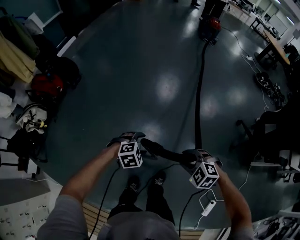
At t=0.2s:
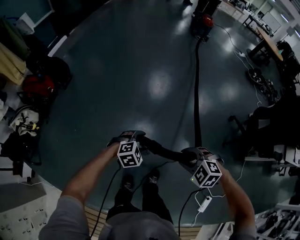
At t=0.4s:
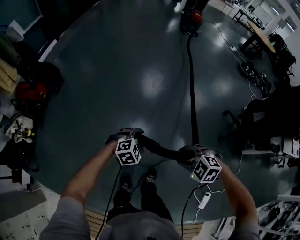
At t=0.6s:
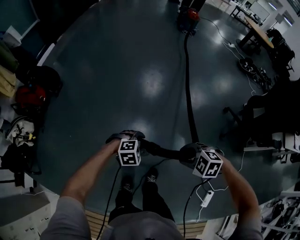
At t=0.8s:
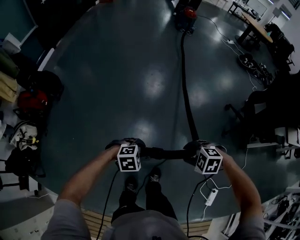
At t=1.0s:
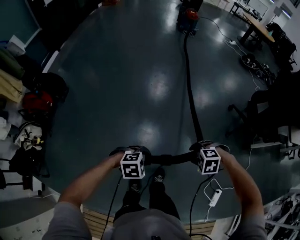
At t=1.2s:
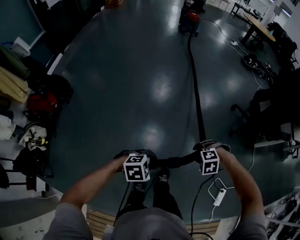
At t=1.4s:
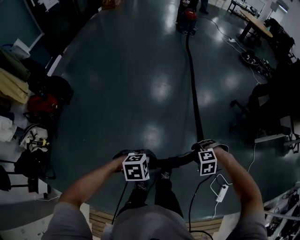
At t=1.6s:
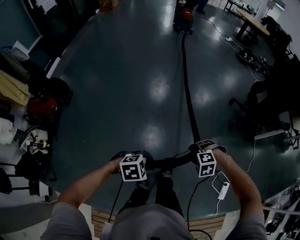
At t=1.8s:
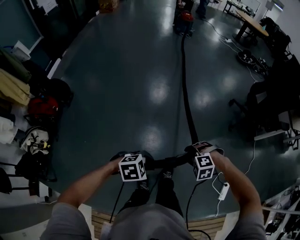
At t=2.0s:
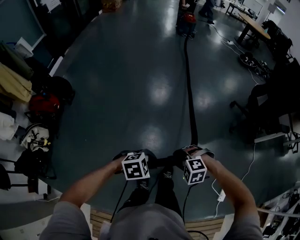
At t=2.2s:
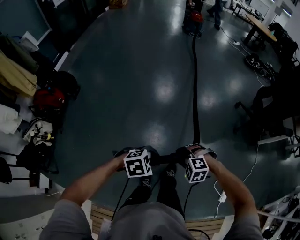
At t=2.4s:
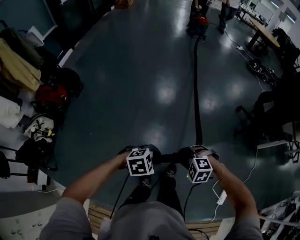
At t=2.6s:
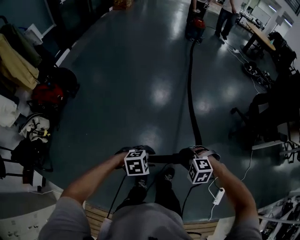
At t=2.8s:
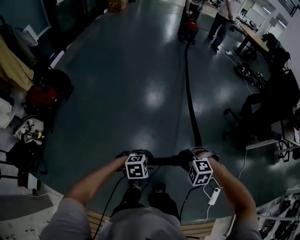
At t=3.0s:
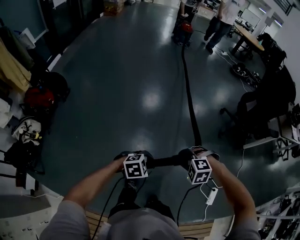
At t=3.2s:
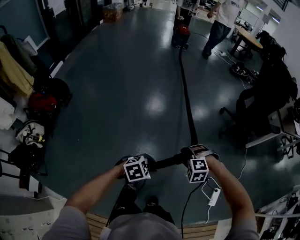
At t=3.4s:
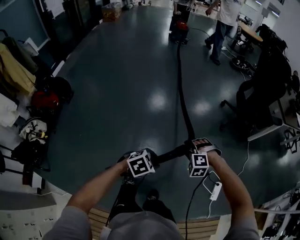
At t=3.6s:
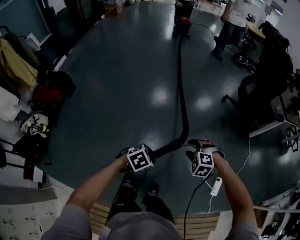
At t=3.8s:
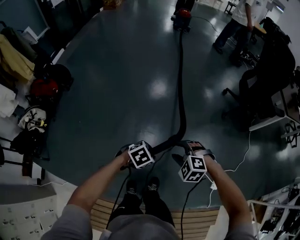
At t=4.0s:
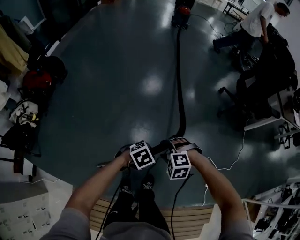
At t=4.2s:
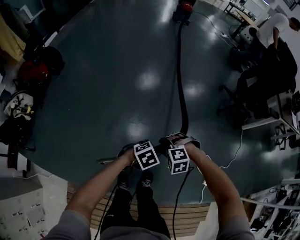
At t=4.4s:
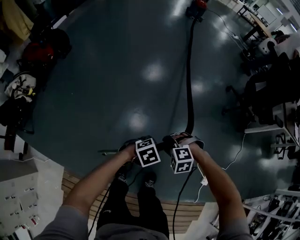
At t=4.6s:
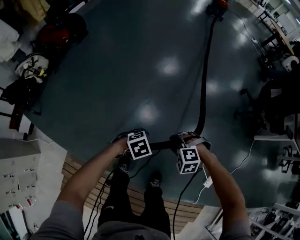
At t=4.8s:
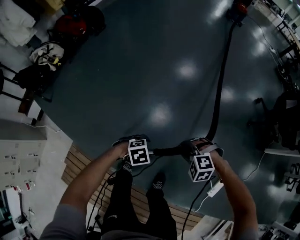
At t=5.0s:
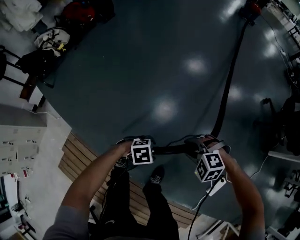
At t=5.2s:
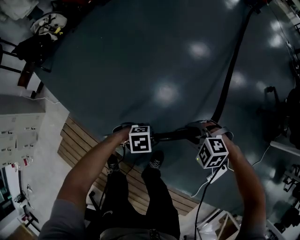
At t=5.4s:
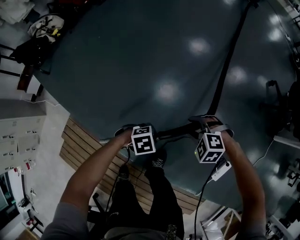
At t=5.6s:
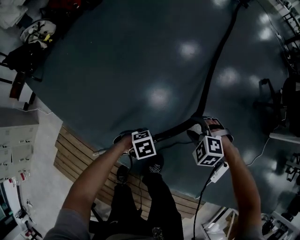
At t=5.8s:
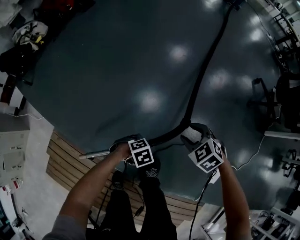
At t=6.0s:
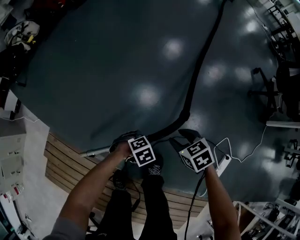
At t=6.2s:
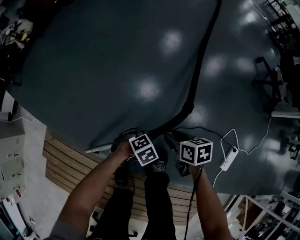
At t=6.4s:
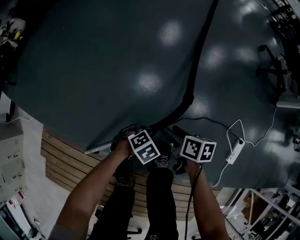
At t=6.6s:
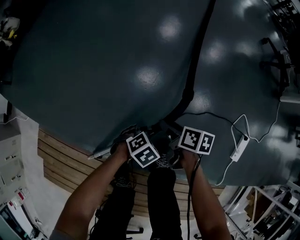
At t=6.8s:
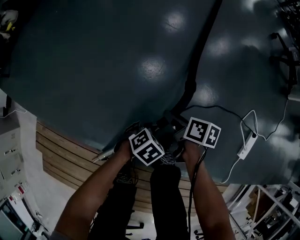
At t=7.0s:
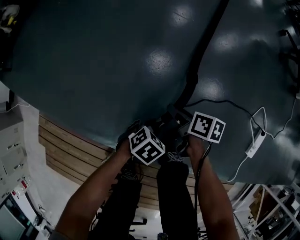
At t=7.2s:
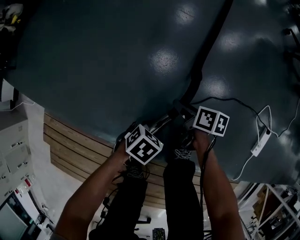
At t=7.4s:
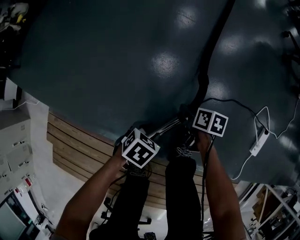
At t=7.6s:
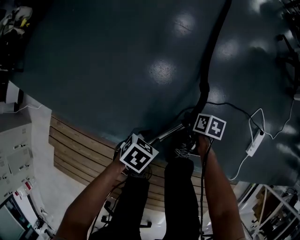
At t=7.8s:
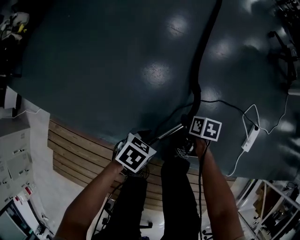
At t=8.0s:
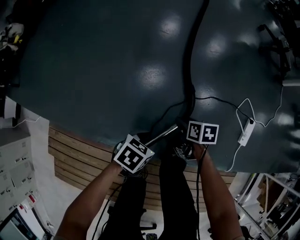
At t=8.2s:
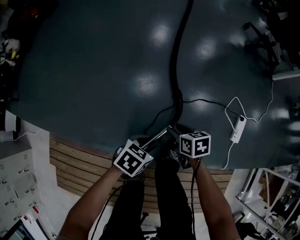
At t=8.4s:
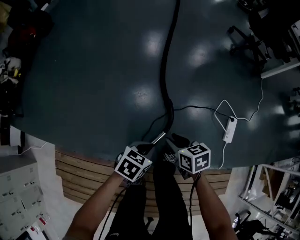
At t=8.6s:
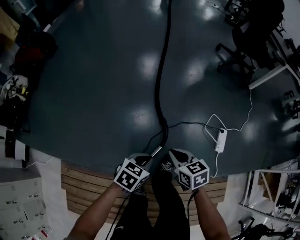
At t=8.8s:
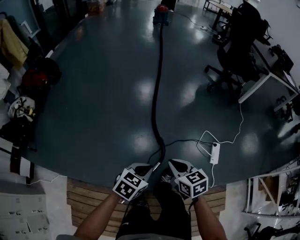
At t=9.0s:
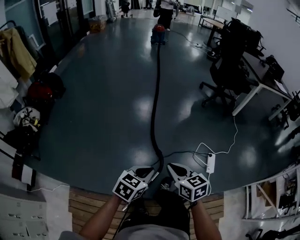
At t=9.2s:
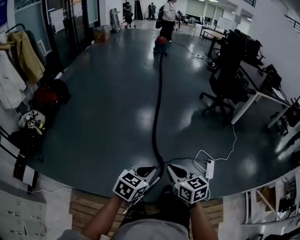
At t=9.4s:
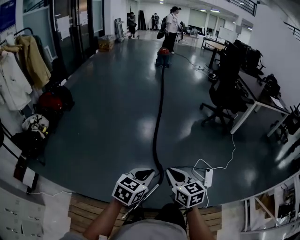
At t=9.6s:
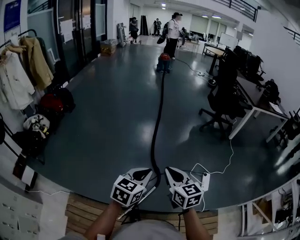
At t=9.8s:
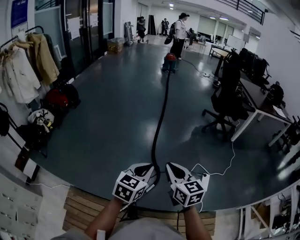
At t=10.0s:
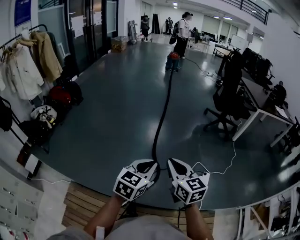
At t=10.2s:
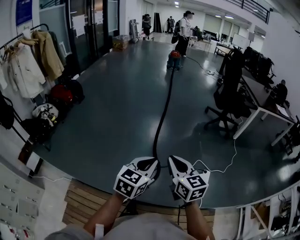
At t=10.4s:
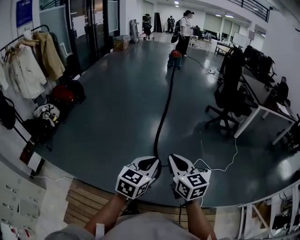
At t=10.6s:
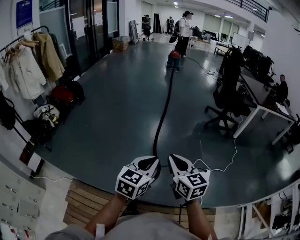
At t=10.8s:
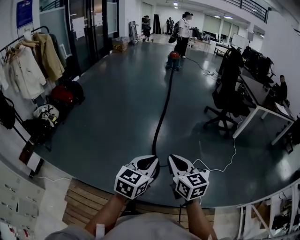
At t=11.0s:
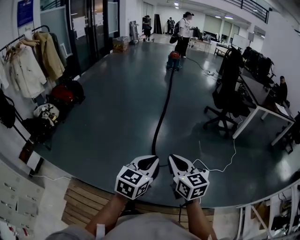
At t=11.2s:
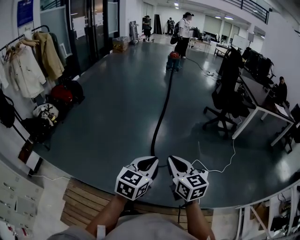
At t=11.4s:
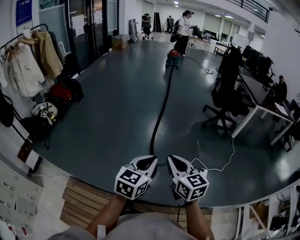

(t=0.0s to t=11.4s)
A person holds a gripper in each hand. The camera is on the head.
t=0.0s - t=1.4s: The right gripper changes place by approximately 15 cm, and rotates about 20 degrees, while the left gripper moves approximately 20 cm, turns by roughly 20 degrees, and closes.
t=1.4s - t=2.8s: The left gripper moves approximately 5 cm, while the right gripper ends up approximately 15 cm from where it was.
t=2.8s - t=4.2s: The right gripper changes place by some 20 cm. The left gripper ends up about 20 cm from where it was, and turns by about 20 degrees.
t=4.2s - t=5.6s: The left gripper goes some 25 cm downward, and opens and closes again. The right gripper moves downward, approximately 20 cm.
t=5.6s - t=7.2s: Both grippers travel together downward, approximately 35 cm. The left gripper turns by about 20 degrees, while the right gripper rotates around the line of its fingers by roughly 120 degrees, clockwise from behind.
t=7.2s - t=8.6s: The grippers both shift upward by approximately 40 cm. The left gripper turns by about 20 degrees, and closes; the right gripper rotates about 40 degrees, and closes.
t=8.6s - t=10.0s: Both grippers move upward, about 40 cm. The right gripper tips its fingers upward by some 30 degrees. Meanwhile the left gripper changes its angle by roughly 30 degrees.
t=10.0s - t=11.4s: The left gripper shifts by some 5 cm; the right gripper ends up some 5 cm from where it was.

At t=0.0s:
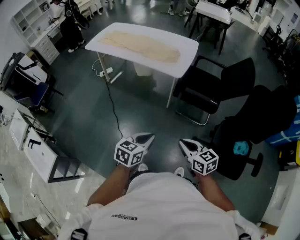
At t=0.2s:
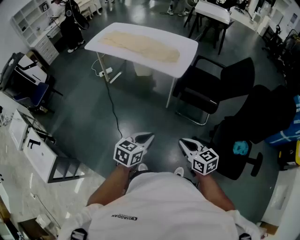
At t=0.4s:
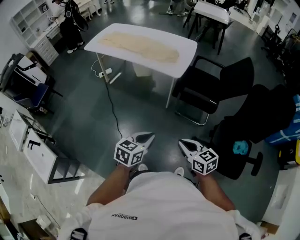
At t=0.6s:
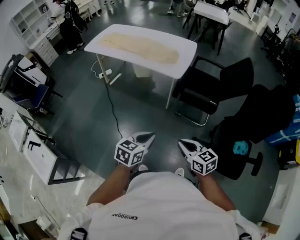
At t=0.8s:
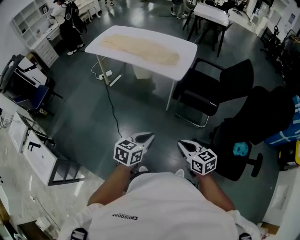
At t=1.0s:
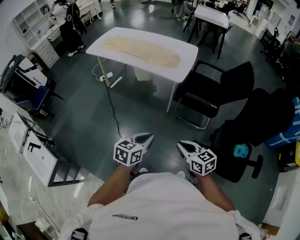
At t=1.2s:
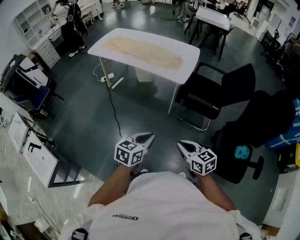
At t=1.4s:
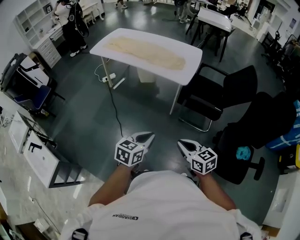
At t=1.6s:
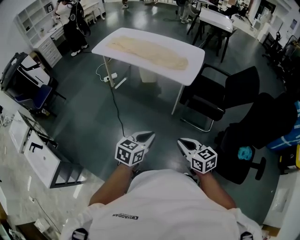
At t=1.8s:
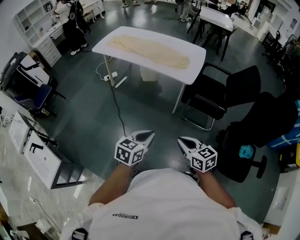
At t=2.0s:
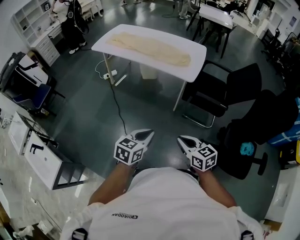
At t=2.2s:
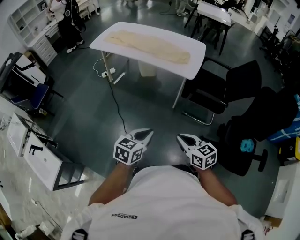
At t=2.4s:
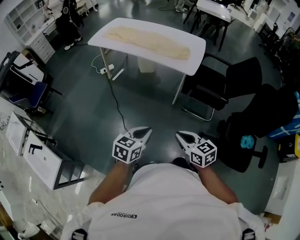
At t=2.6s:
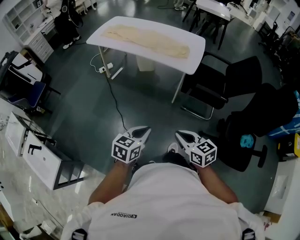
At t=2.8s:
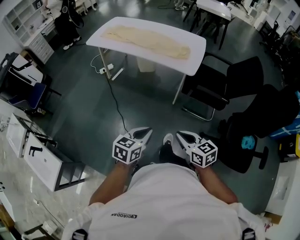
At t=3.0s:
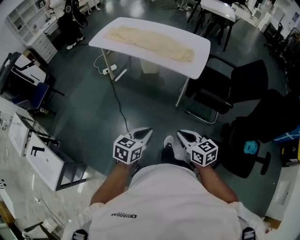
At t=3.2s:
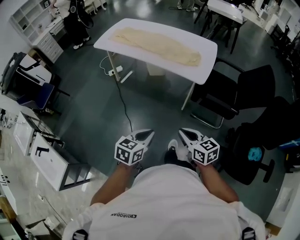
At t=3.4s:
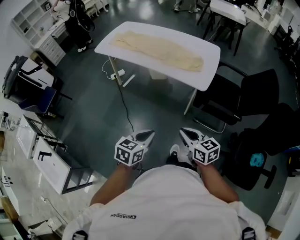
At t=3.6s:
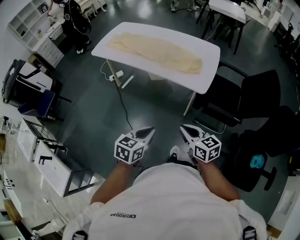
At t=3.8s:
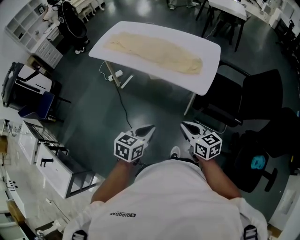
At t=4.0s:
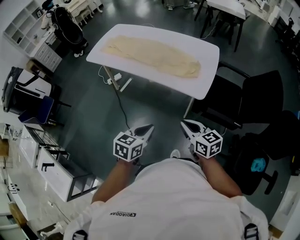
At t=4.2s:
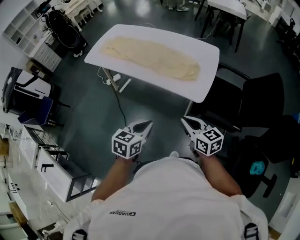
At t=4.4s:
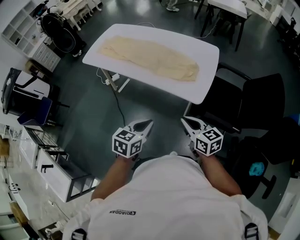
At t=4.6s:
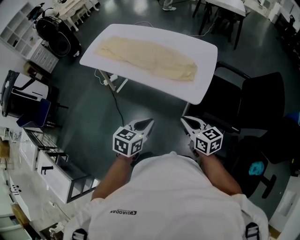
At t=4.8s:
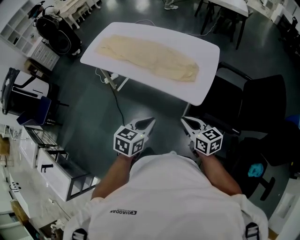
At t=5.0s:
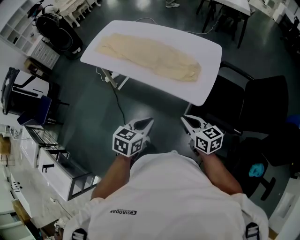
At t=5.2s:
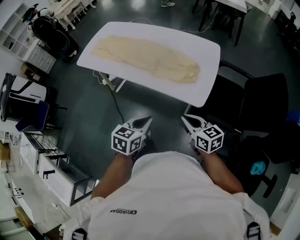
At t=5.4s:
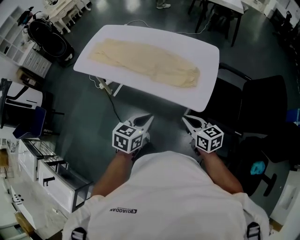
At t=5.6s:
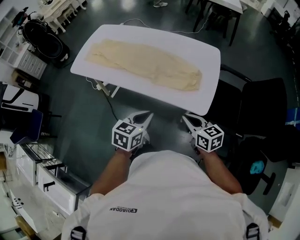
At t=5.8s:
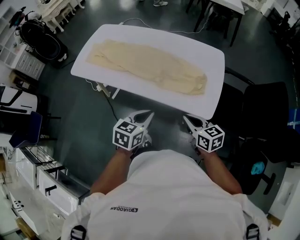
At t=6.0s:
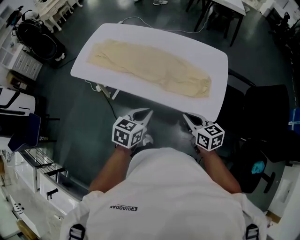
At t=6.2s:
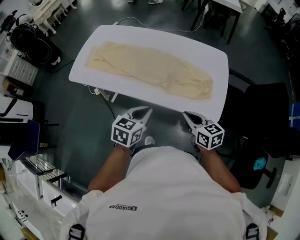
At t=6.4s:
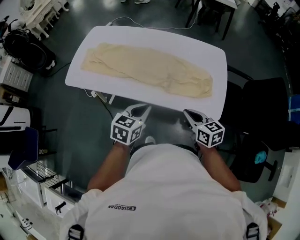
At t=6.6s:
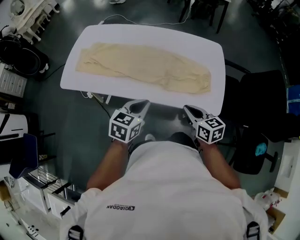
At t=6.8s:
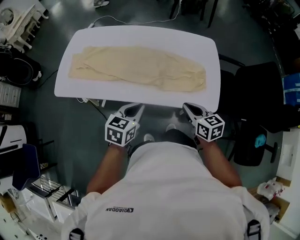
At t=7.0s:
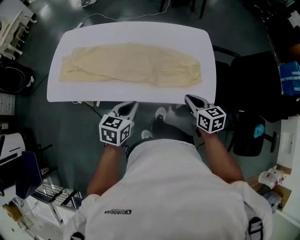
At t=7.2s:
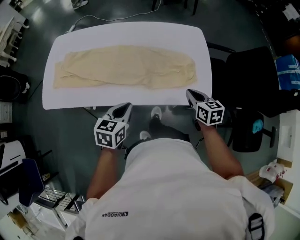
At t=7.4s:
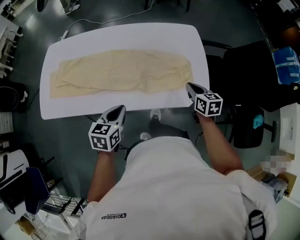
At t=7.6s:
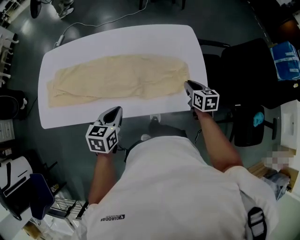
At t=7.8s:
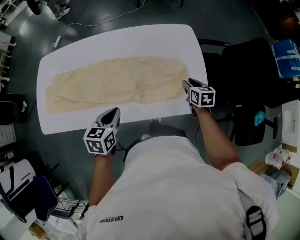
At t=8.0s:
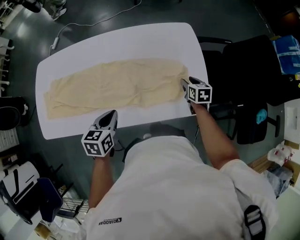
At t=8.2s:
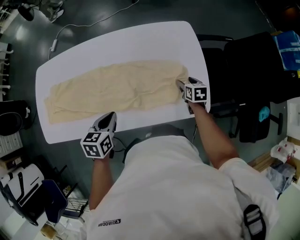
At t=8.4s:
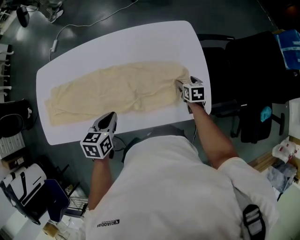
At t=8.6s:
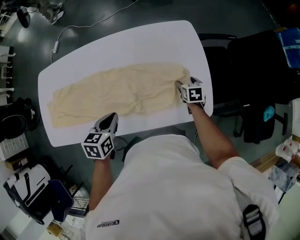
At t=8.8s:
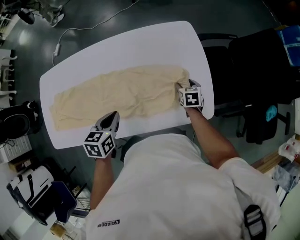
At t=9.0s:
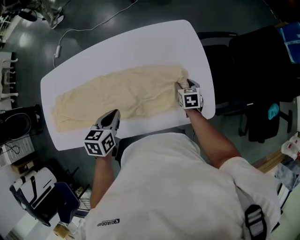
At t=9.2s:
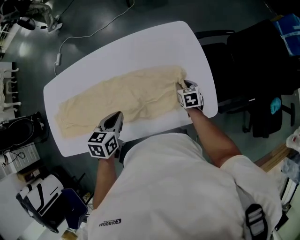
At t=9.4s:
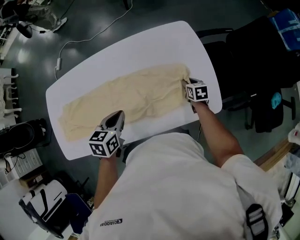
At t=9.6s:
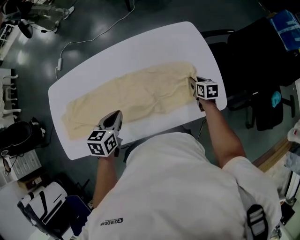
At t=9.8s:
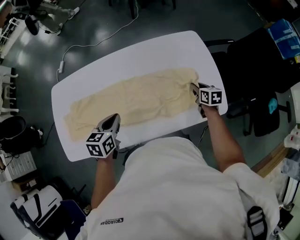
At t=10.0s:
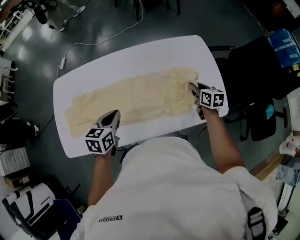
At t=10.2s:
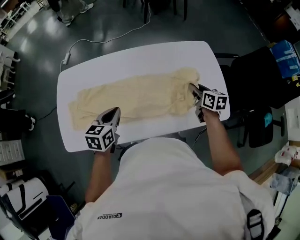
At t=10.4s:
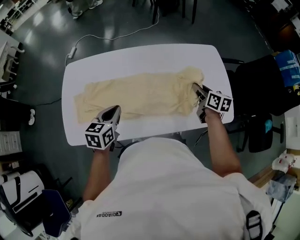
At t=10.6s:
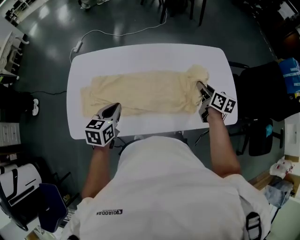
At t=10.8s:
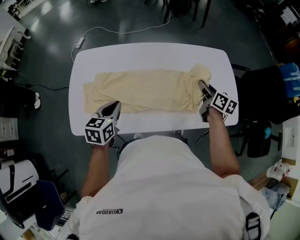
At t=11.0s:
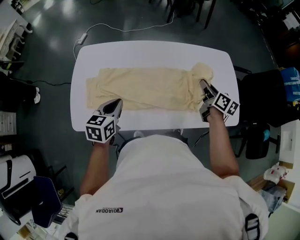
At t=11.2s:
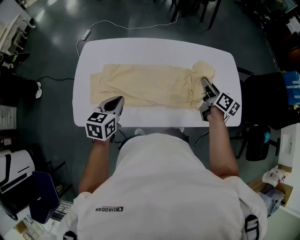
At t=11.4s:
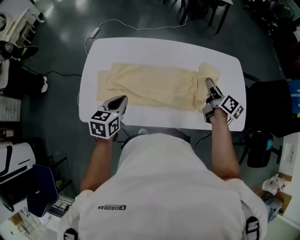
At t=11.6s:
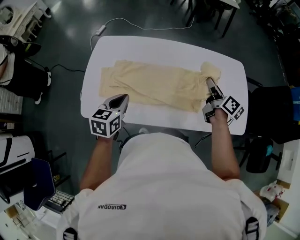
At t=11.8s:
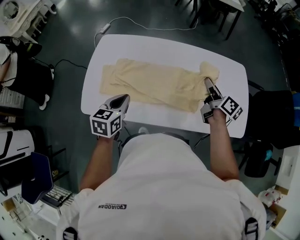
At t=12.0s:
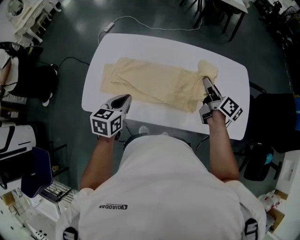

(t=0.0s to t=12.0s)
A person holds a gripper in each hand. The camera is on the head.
t=0.0s - t=1.6s: Both grippers move to the left, some 10 cm.
t=1.6s - t=3.0s: The right gripper is displaced forward and to the left by approximately 10 cm, while the left gripper travels to the left and forward by some 10 cm.
t=3.0s - t=4.4s: The grippers both shift forward by roughly 30 cm.
t=4.4s - t=6.0s: The two grippers go approximately 25 cm forward and to the left.
t=6.0s - t=7.6s: The left gripper ends up some 20 cm from where it was. Meanwhile the right gripper ends up approximately 25 cm from where it was, and rotates approximately 40 degrees.
t=7.6s - t=9.0s: The left gripper is displaced forward by about 15 cm. The right gripper is displaced downward and forward by about 15 cm, and opens.
t=9.0s - t=10.4s: The right gripper heads to the left and upward, covering some 30 cm, turns by some 30 degrees, and closes its fingers; the left gripper moves to the left, some 25 cm.
t=10.4s - t=12.0s: The right gripper moves to the left and upward, approximately 15 cm, and changes its angle by about 30 degrees, while the left gripper goes some 10 cm to the left and backward.
